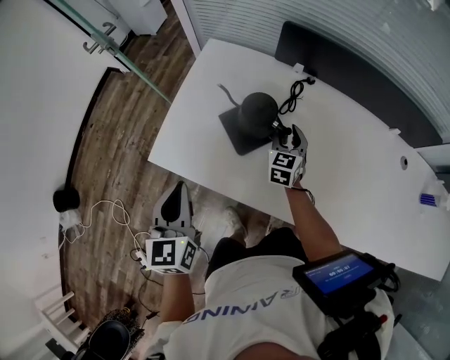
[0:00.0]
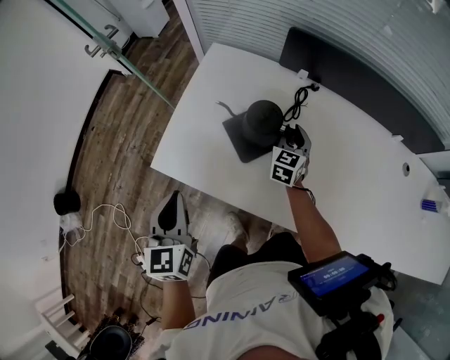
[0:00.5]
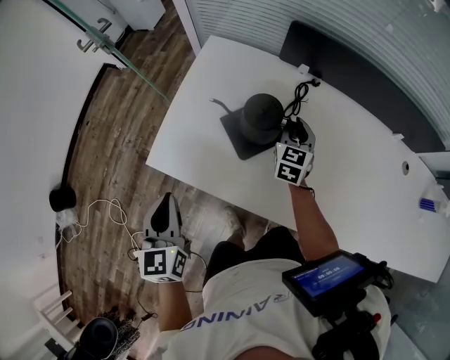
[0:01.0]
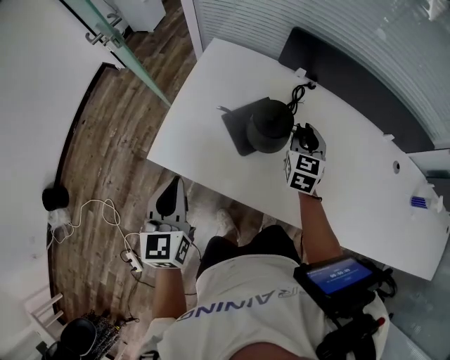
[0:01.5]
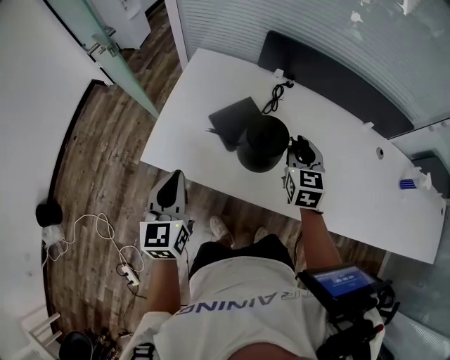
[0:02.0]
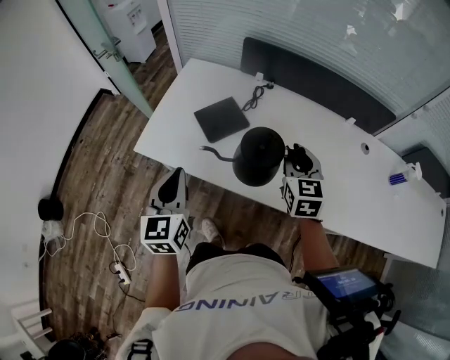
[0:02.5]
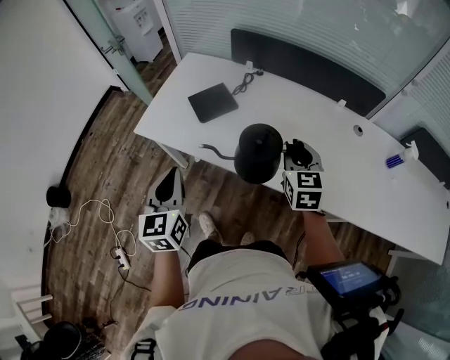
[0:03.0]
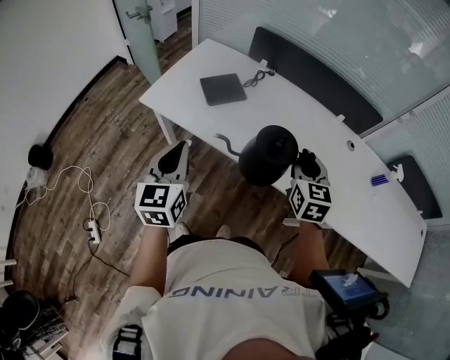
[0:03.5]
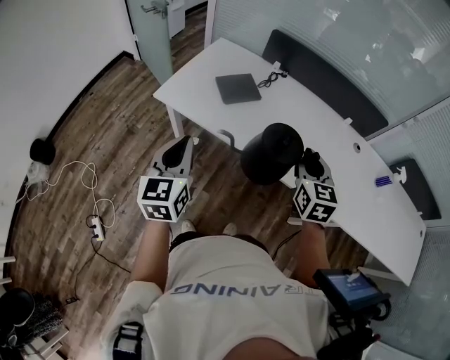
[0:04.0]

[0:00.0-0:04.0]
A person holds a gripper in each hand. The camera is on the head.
0:00.0 to 0:02.0: The right gripper shifts some 20 cm upward and backward, and closes its fingers.
0:02.0 to 0:04.0: Both grippers travel together backward, about 30 cm.

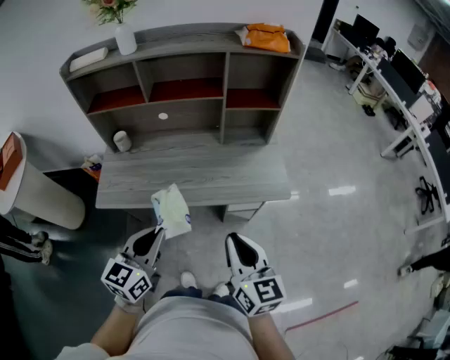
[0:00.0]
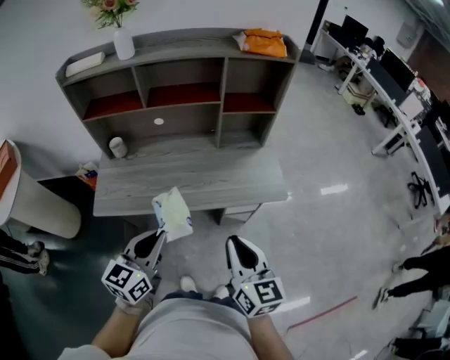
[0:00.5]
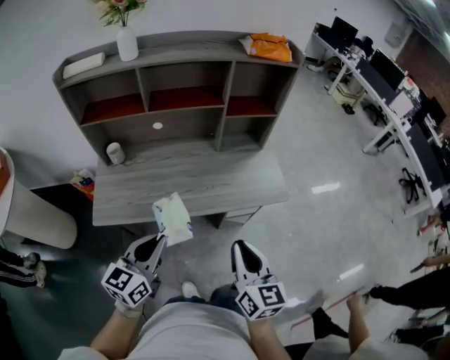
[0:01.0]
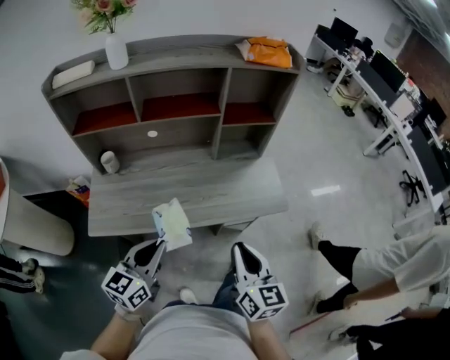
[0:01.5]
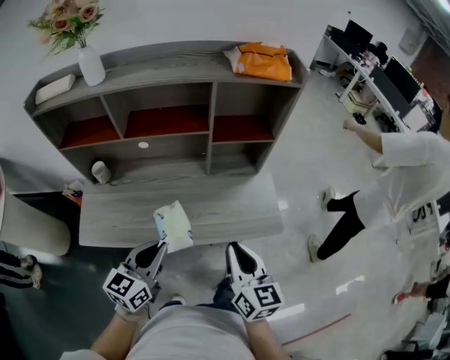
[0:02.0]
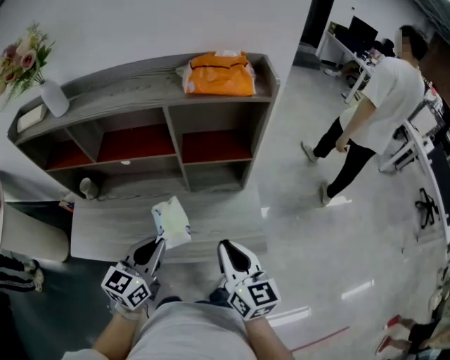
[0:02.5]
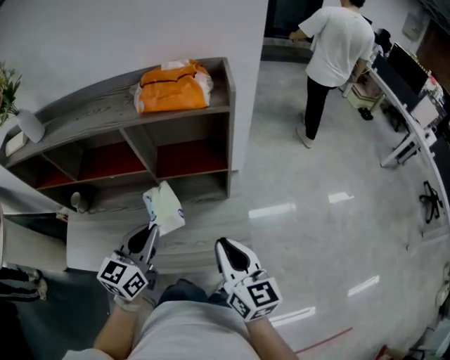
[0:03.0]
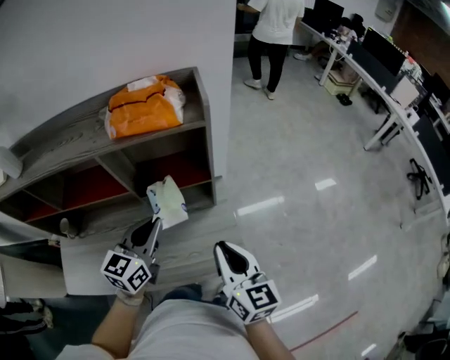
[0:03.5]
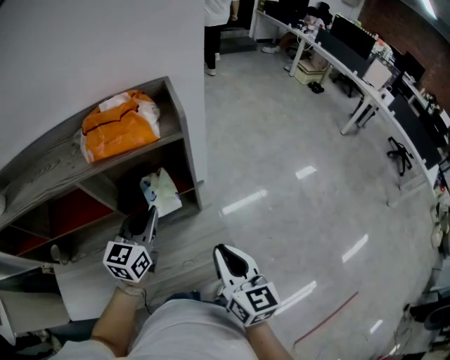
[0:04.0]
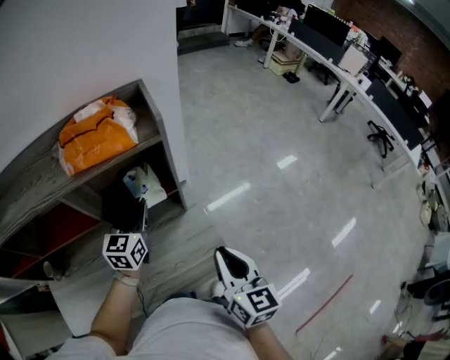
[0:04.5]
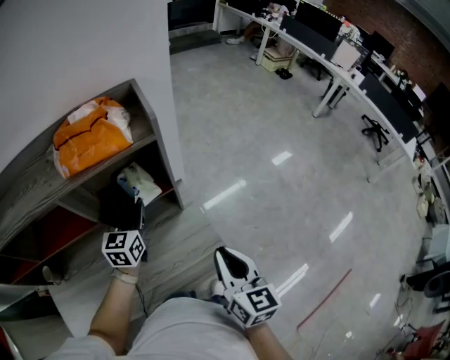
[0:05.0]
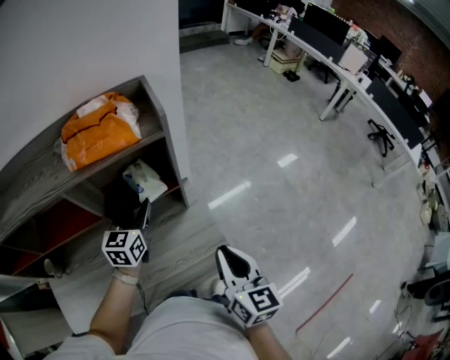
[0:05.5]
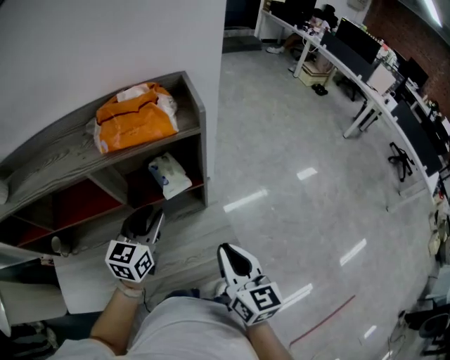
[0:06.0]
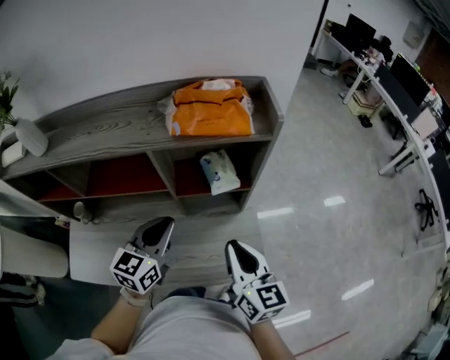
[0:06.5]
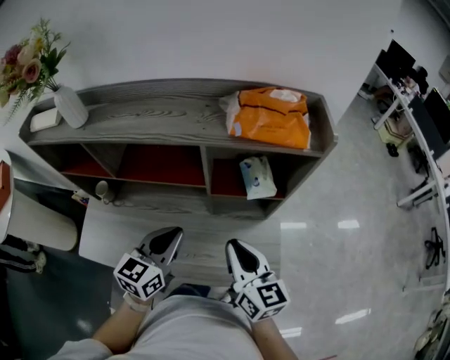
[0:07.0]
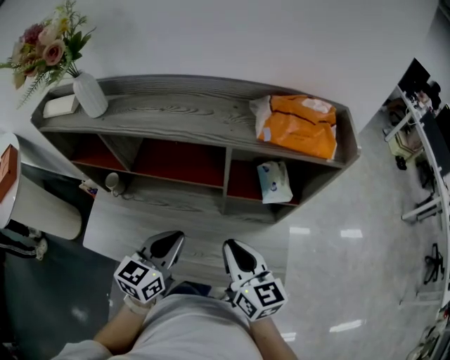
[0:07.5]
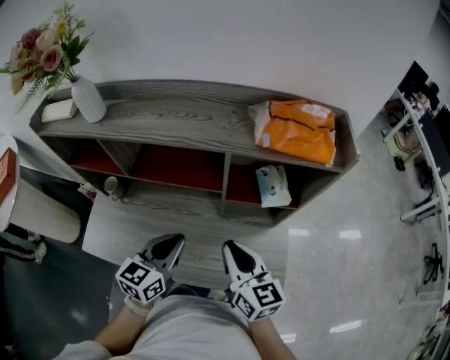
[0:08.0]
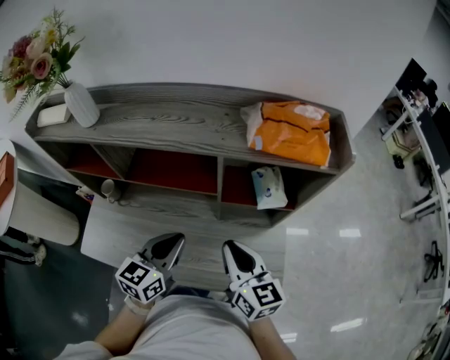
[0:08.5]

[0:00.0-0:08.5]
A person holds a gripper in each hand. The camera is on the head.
0:00.0 to 0:02.0: The grippers both shift forward by roughly 15 cm.
0:02.0 to 0:04.0: The right gripper is displaced forward and to the right by about 25 cm, while the left gripper travels forward and to the right by approximately 40 cm.
0:04.0 to 0:06.5: The right gripper shifts approximately 10 cm to the left, while the left gripper is displaced backward and to the left by some 10 cm, and opens, then closes again.
0:06.5 to 0:08.5: Both grippers travel together to the left, about 10 cm.

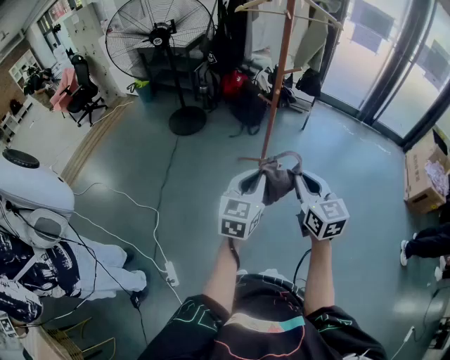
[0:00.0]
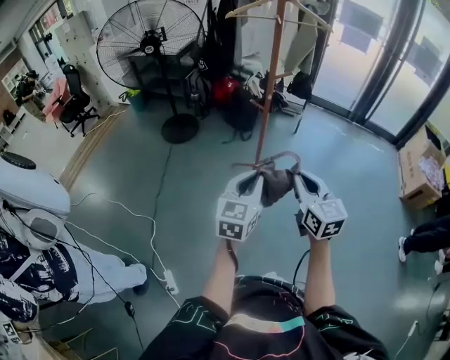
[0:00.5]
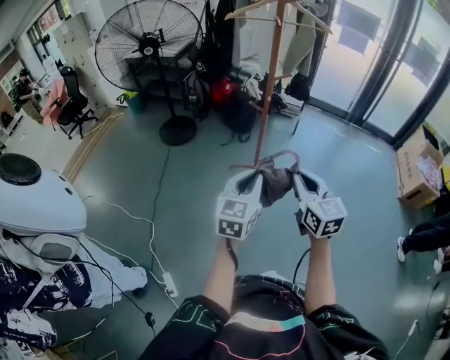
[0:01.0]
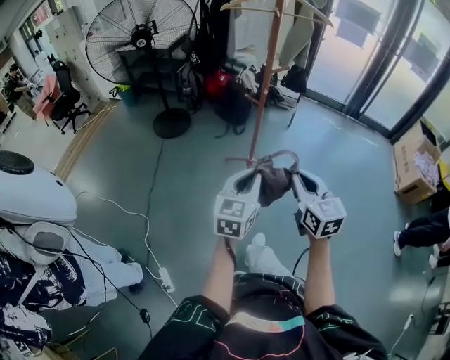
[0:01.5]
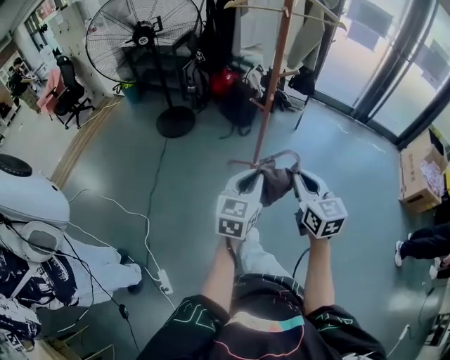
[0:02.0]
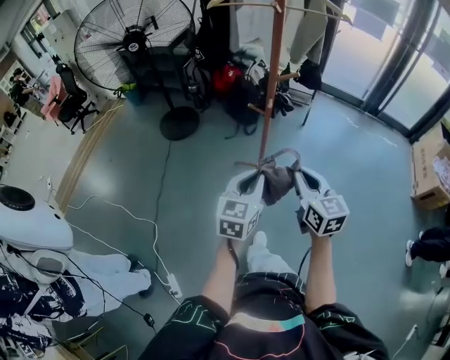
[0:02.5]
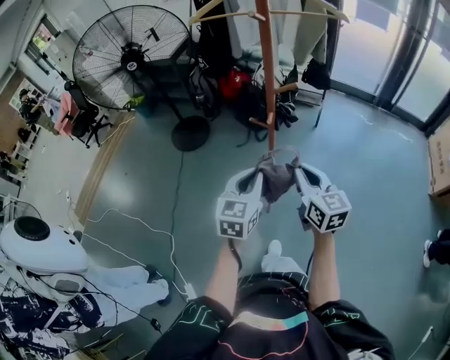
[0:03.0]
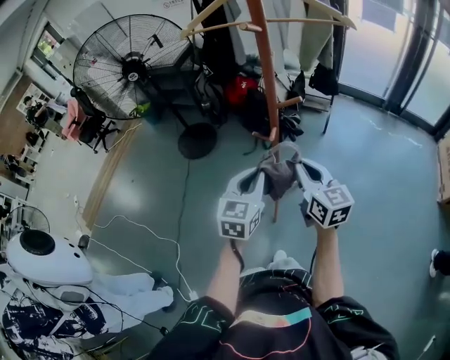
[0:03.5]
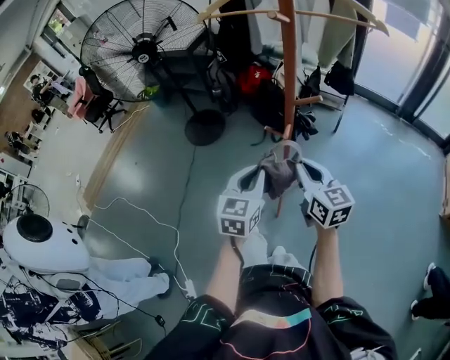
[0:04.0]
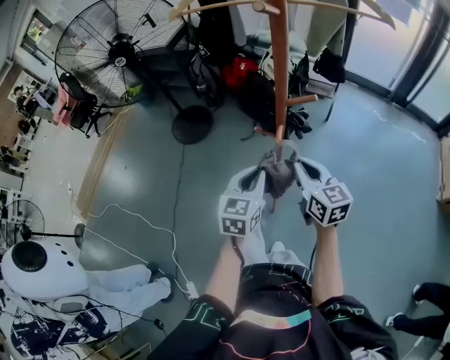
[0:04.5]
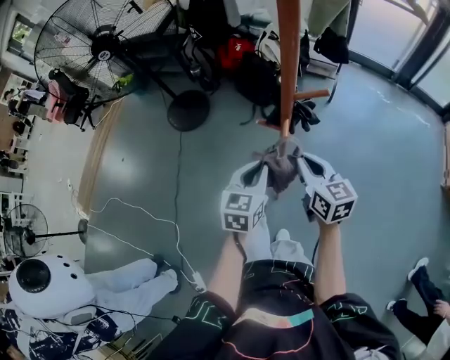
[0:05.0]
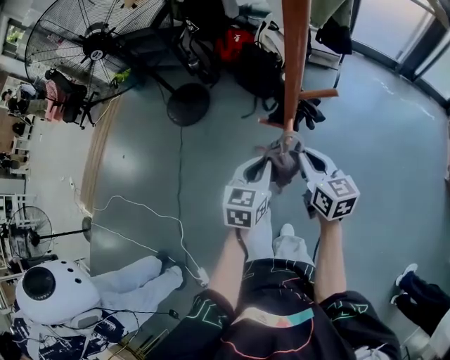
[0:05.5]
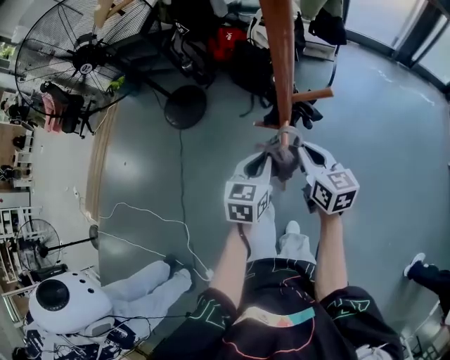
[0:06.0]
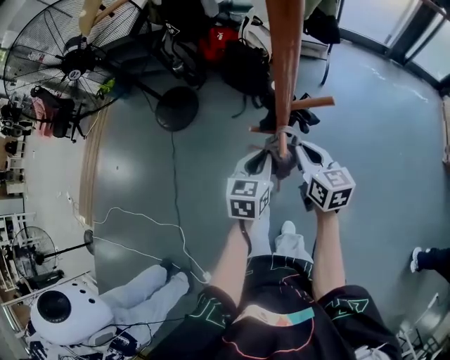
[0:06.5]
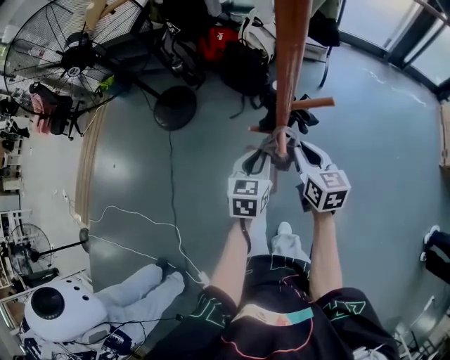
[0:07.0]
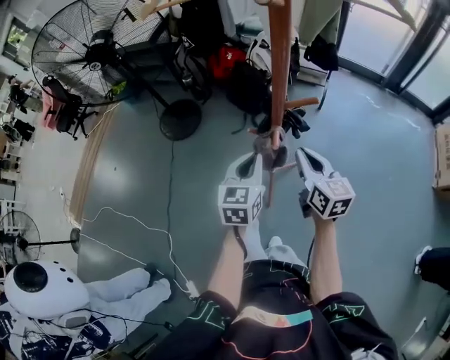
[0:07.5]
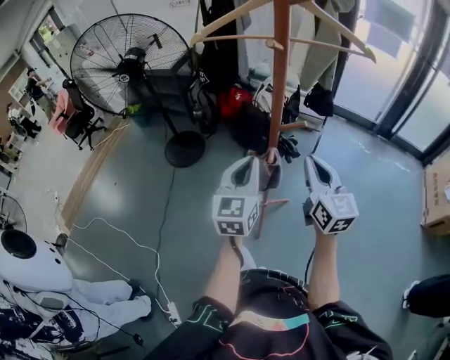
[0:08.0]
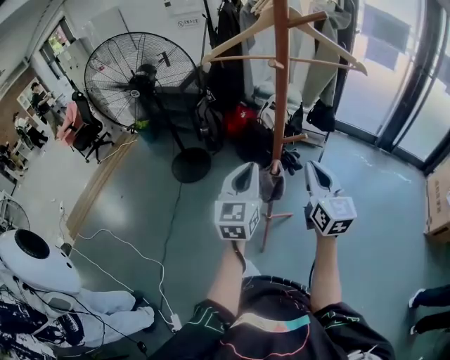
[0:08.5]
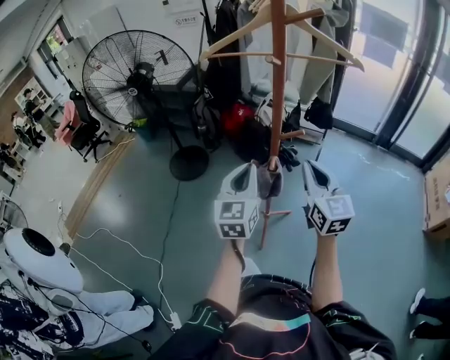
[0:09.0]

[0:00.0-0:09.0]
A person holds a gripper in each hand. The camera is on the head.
0:00.0 to 0:02.0: Both grippers travel together forward, some 10 cm.
0:02.0 to 0:04.5: Both grippers travel together forward, approximately 25 cm.
0:04.5 to 0:07.0: Both grippers travel together downward and forward, some 15 cm.
0:07.0 to 0:09.0: Both grippers move upward, approximately 20 cm. The left gripper tips its fingers upward by roughly 30 degrees. The right gripper changes its angle by roughly 30 degrees.

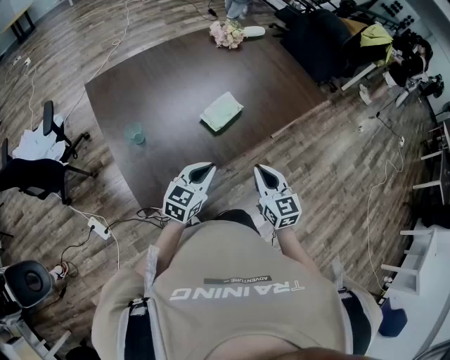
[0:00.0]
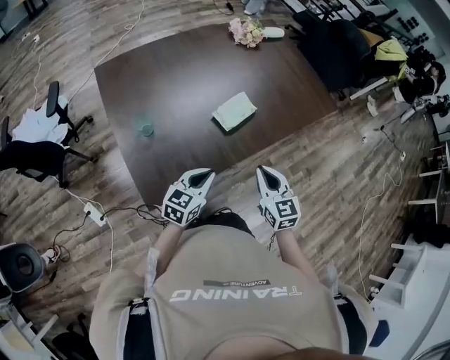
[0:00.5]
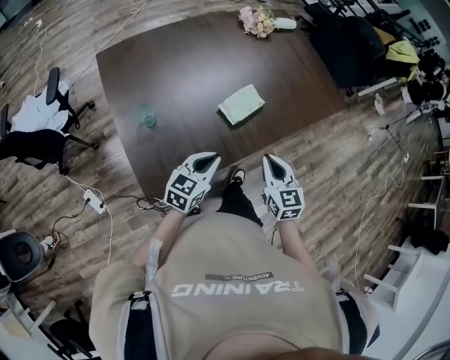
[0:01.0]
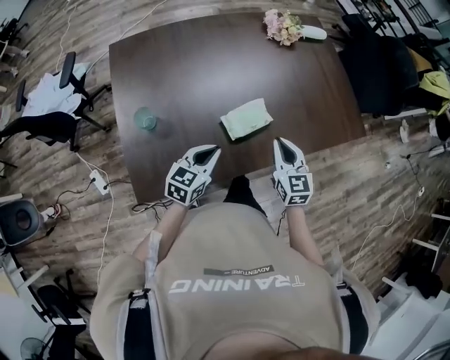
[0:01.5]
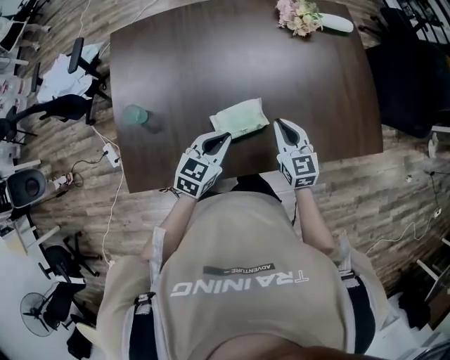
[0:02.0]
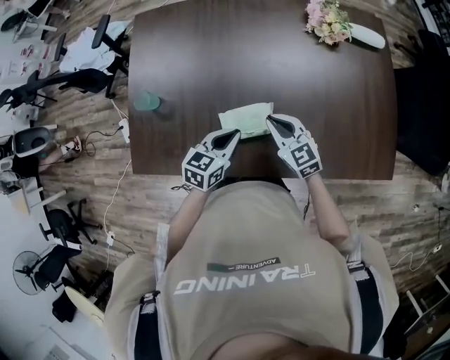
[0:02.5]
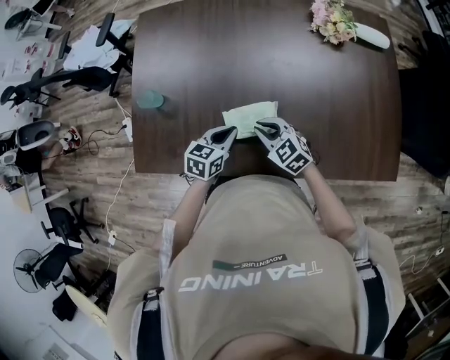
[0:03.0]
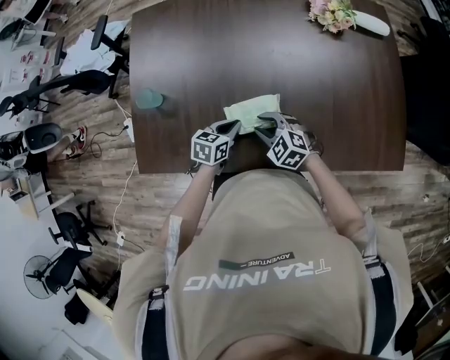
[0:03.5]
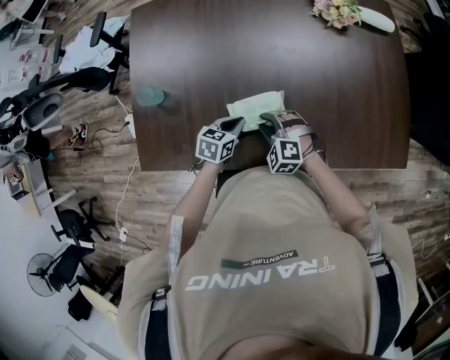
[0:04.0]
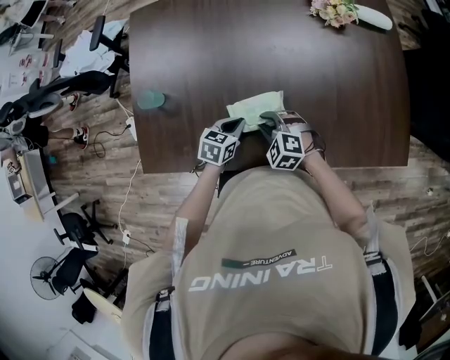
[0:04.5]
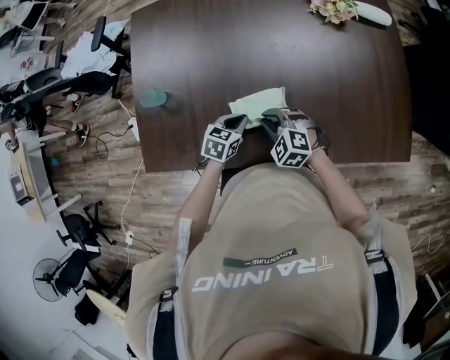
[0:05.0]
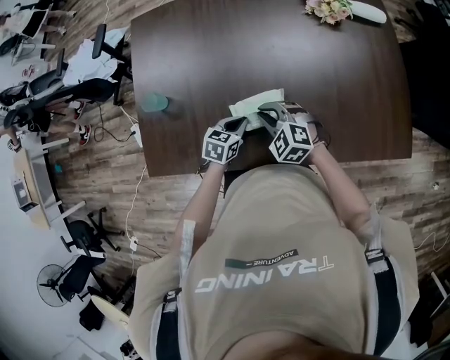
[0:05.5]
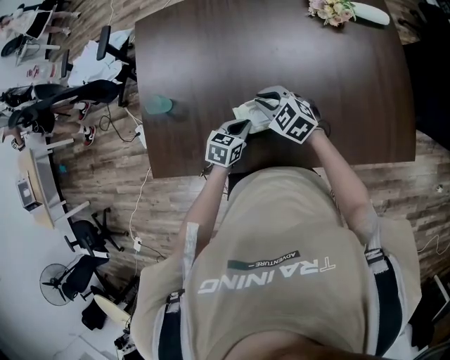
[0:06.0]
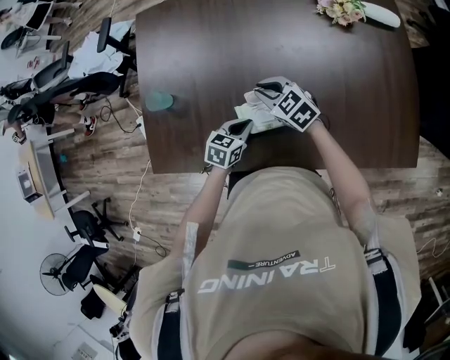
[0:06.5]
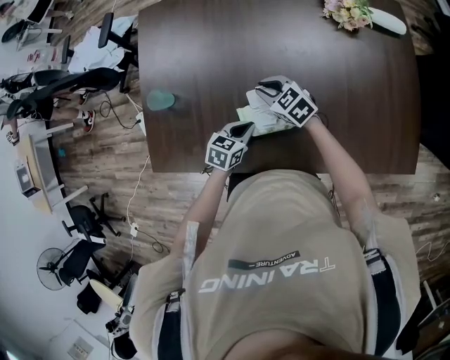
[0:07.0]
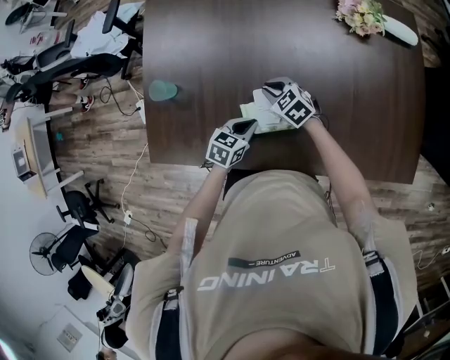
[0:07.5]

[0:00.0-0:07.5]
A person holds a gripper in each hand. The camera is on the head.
0:00.0 to 0:02.0: Both grippers travel together forward, approximately 30 cm. The right gripper turns by roughly 20 degrees, while the left gripper changes its angle by approximately 30 degrees.
0:02.0 to 0:04.0: Both grippers travel together downward, about 10 cm. The left gripper swivels roughly 30 degrees. The right gripper twists roughly 60 degrees counterclockwise, seen from behind, and opens up.
0:04.0 to 0:05.5: The right gripper goes some 5 cm upward.
0:05.5 to 0:07.5: The right gripper heads forward and downward, covering some 10 cm, and swivels approximately 20 degrees.
